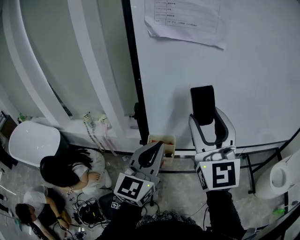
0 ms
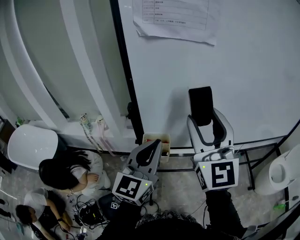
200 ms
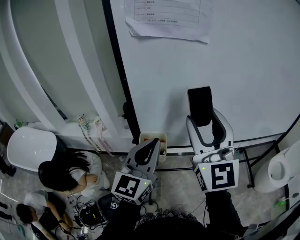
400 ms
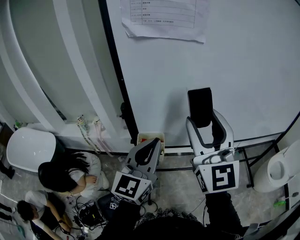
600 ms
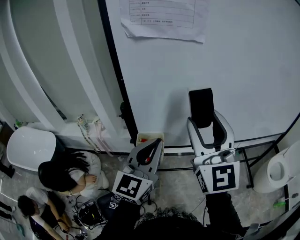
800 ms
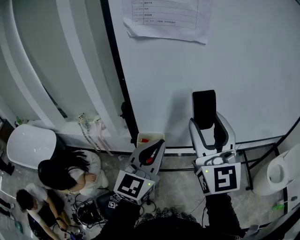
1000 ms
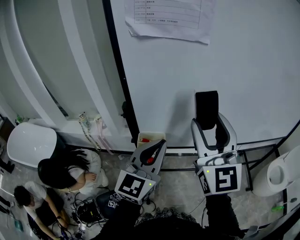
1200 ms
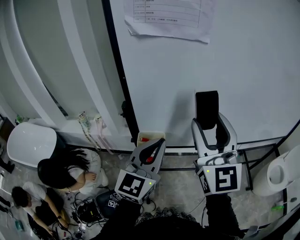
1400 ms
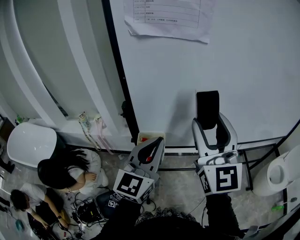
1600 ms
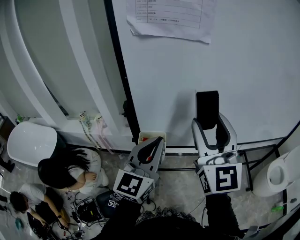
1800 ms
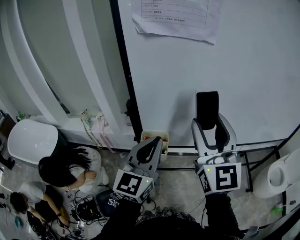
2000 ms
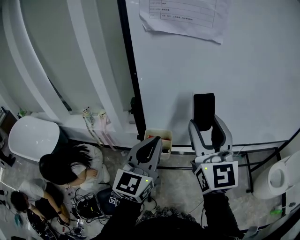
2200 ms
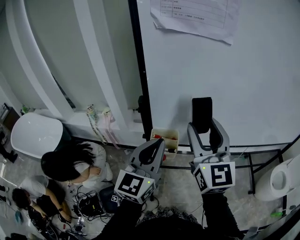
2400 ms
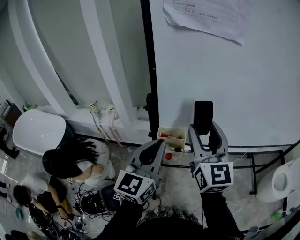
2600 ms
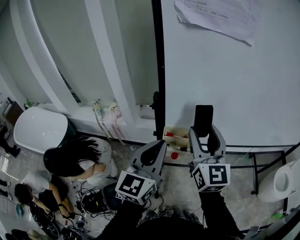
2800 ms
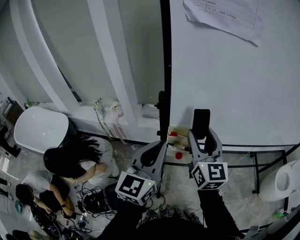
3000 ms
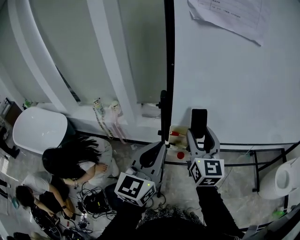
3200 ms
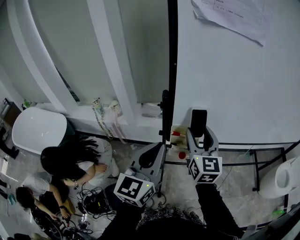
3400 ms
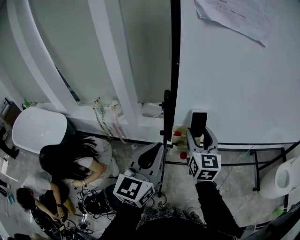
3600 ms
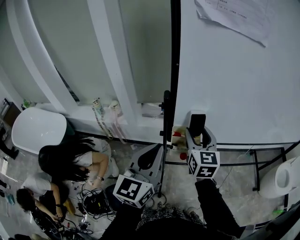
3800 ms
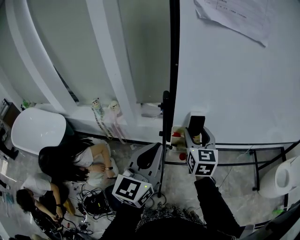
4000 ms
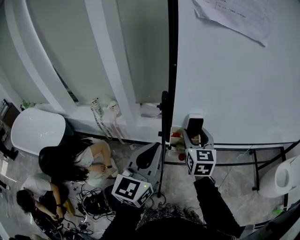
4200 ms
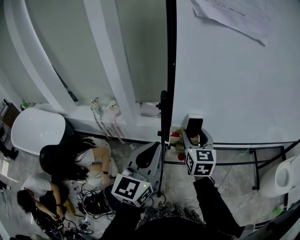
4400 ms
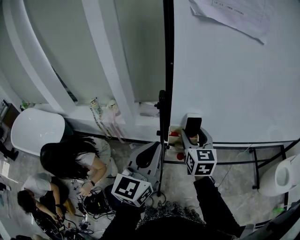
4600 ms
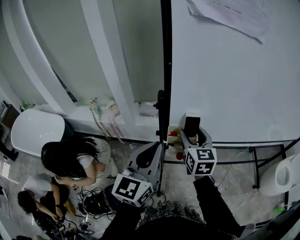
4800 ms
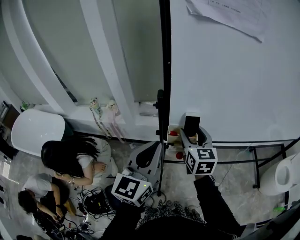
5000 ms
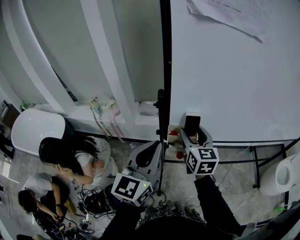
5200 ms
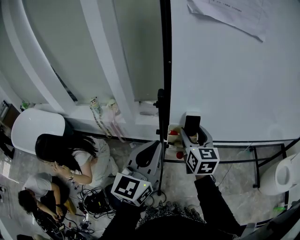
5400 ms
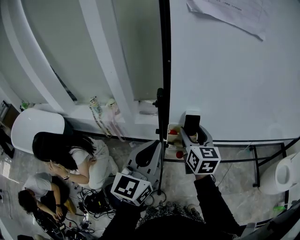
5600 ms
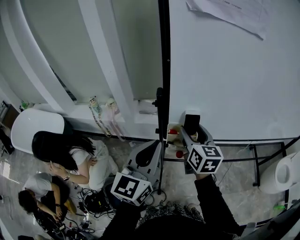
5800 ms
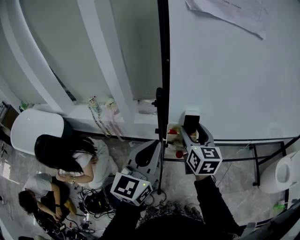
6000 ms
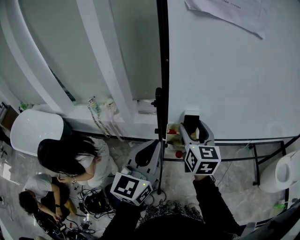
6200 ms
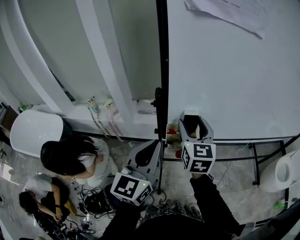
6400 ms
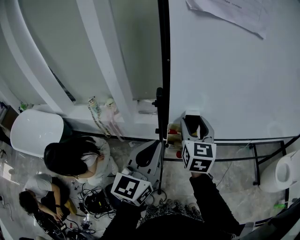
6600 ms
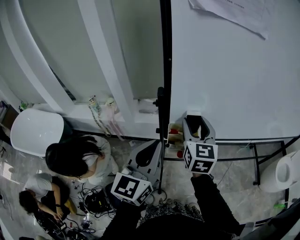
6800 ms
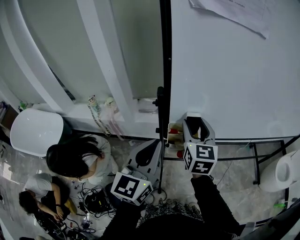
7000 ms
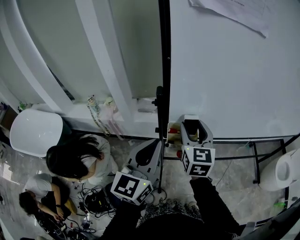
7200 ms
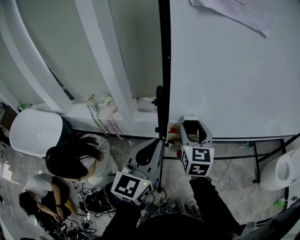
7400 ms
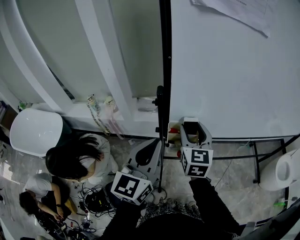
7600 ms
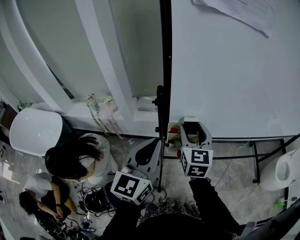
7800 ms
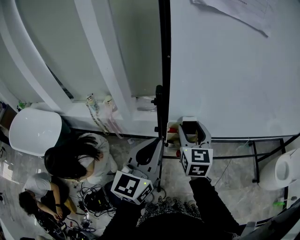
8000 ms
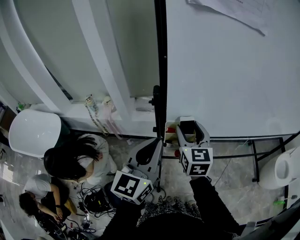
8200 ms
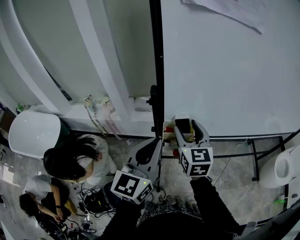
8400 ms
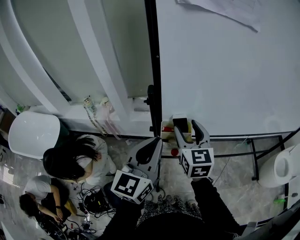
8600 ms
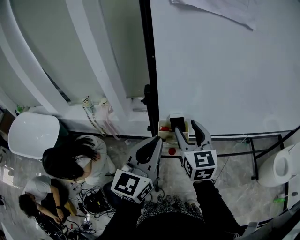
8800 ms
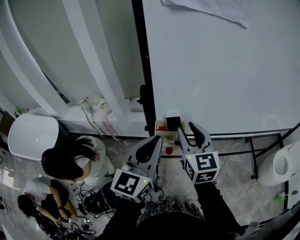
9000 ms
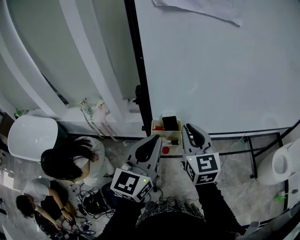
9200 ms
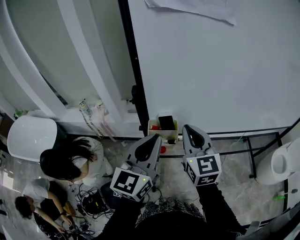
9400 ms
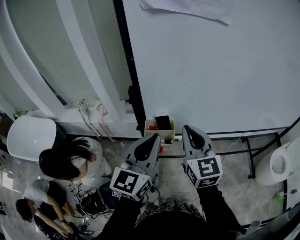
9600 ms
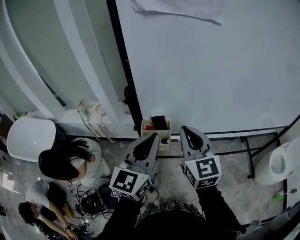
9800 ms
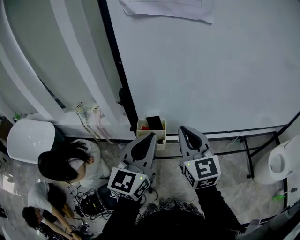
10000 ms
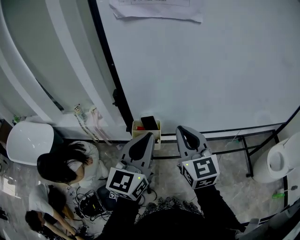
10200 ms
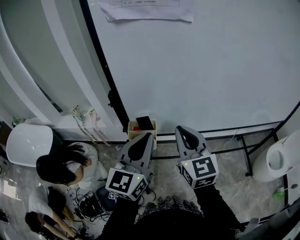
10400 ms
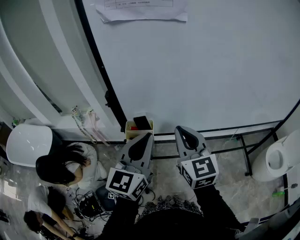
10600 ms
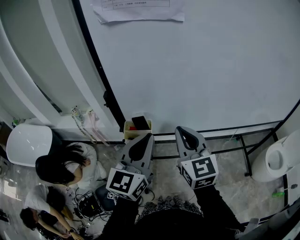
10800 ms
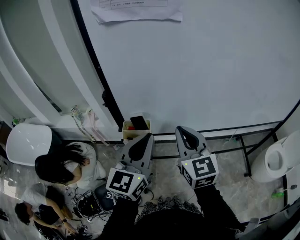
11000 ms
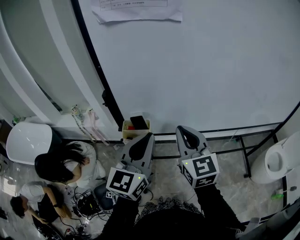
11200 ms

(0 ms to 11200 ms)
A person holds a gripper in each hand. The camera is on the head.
0 ms - 1600 ms: The right gripper shifts roughly 5 cm to the right.
1600 ms - 3200 ms: The left gripper moves to the left, roughly 10 cm. Meanwhile the right gripper is displaced downward and to the left by about 20 cm, and rotates some 20 degrees.
3200 ms - 4800 ms: The right gripper is displaced downward by about 5 cm.
4800 ms - 8000 ms: The grippers move only a little.
8000 ms - 9600 ms: The left gripper heads to the right, covering some 10 cm. The right gripper moves to the right, upward and backward, approximately 10 cm, and closes.
9600 ms - 11200 ms: The two grippers go approximately 10 cm to the right.

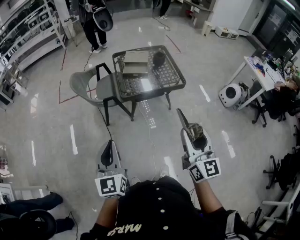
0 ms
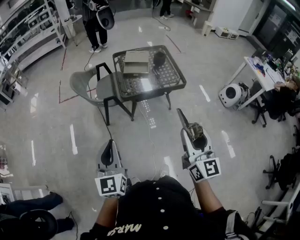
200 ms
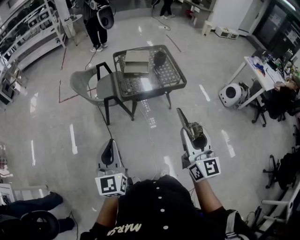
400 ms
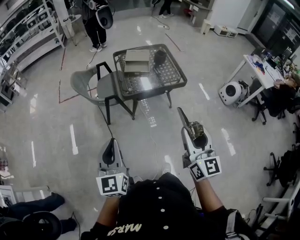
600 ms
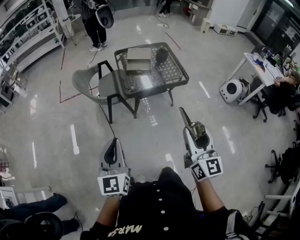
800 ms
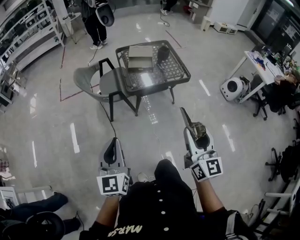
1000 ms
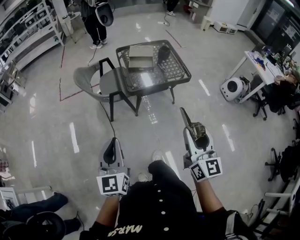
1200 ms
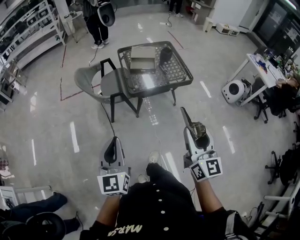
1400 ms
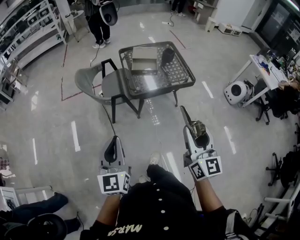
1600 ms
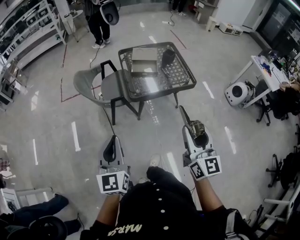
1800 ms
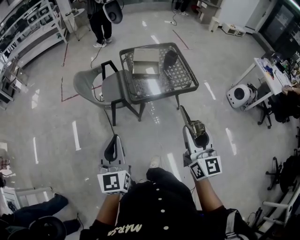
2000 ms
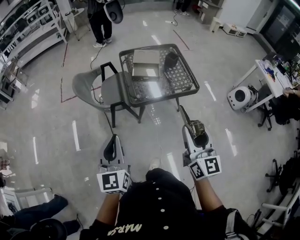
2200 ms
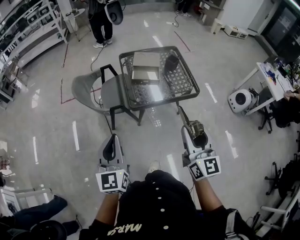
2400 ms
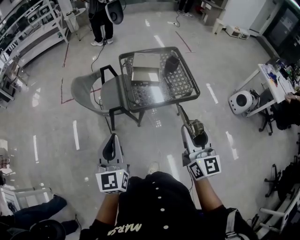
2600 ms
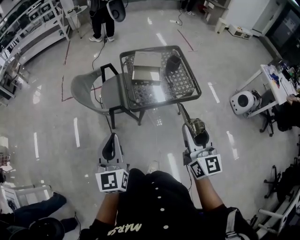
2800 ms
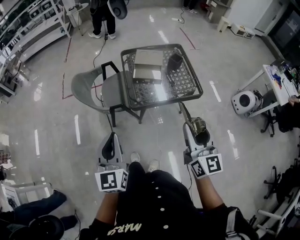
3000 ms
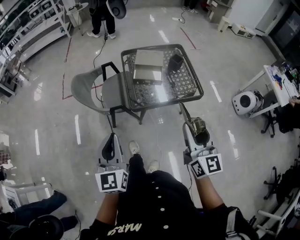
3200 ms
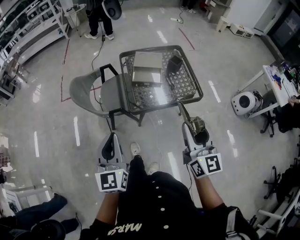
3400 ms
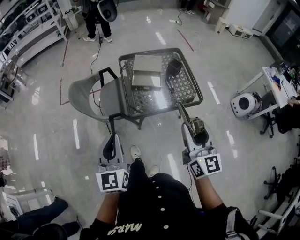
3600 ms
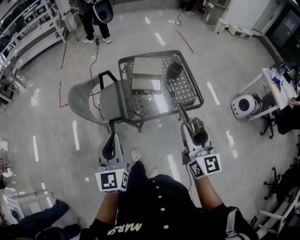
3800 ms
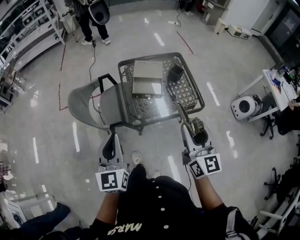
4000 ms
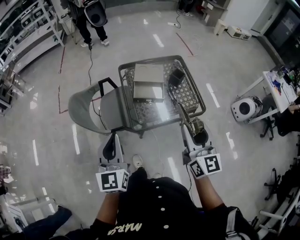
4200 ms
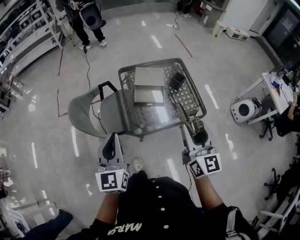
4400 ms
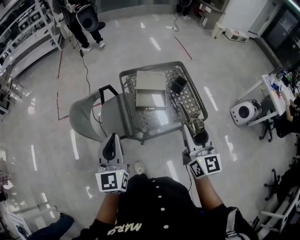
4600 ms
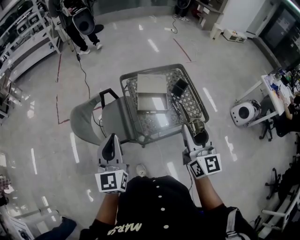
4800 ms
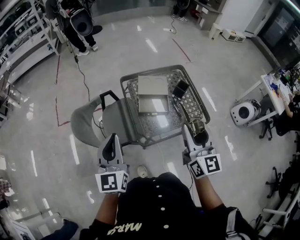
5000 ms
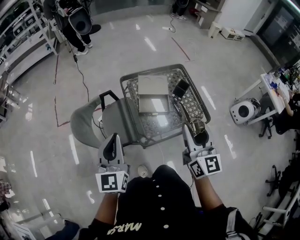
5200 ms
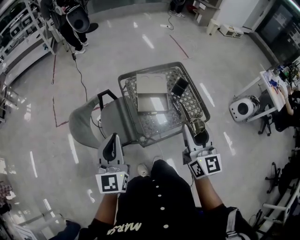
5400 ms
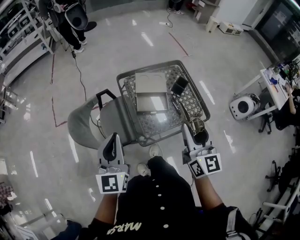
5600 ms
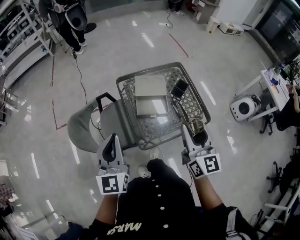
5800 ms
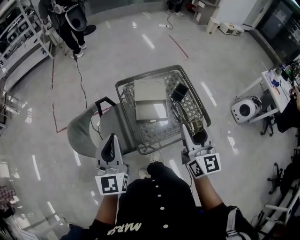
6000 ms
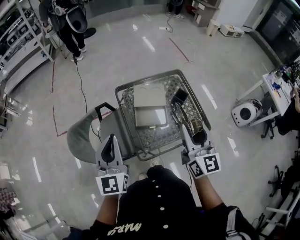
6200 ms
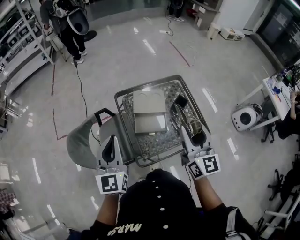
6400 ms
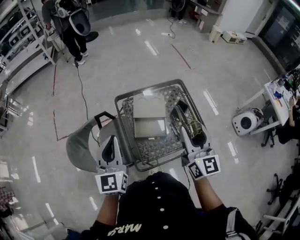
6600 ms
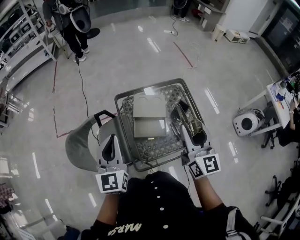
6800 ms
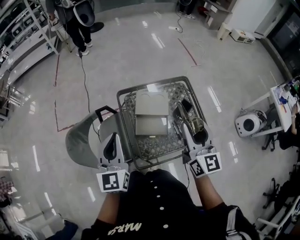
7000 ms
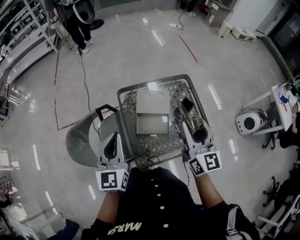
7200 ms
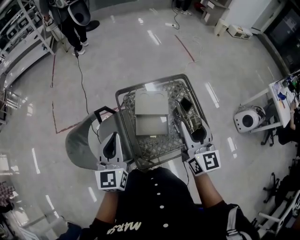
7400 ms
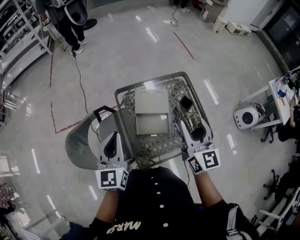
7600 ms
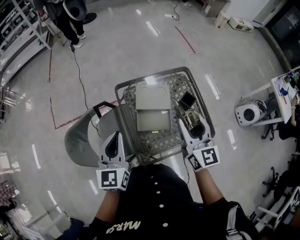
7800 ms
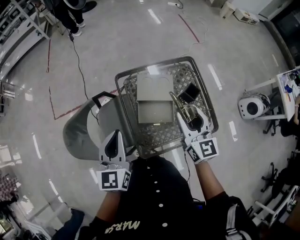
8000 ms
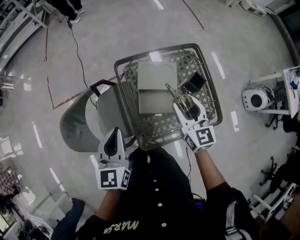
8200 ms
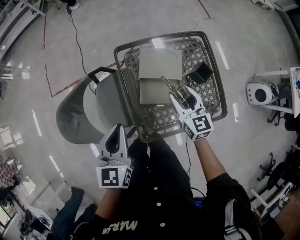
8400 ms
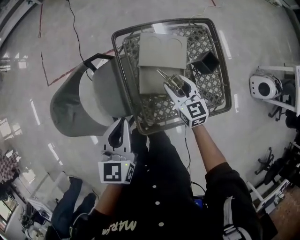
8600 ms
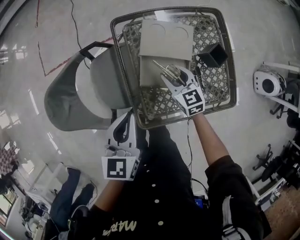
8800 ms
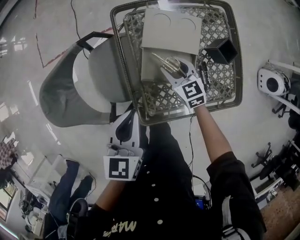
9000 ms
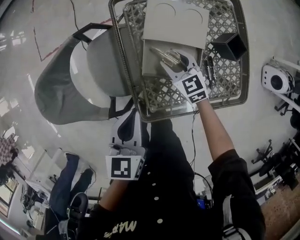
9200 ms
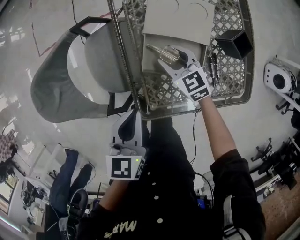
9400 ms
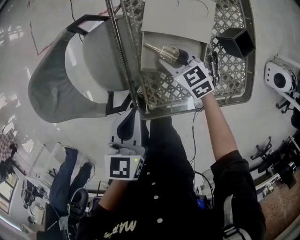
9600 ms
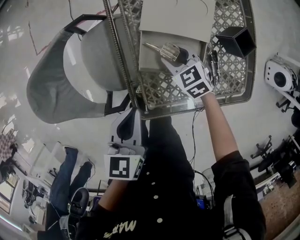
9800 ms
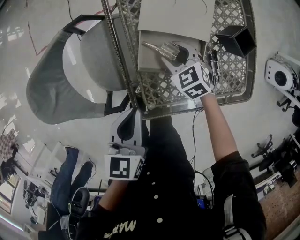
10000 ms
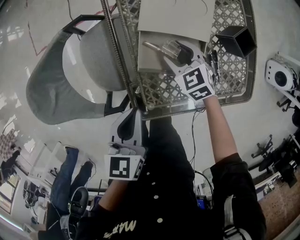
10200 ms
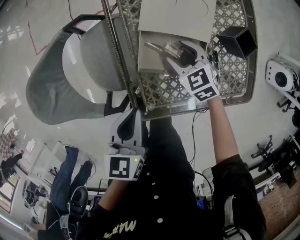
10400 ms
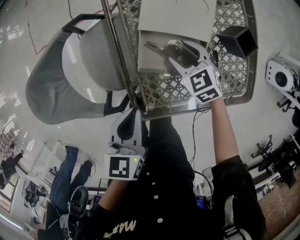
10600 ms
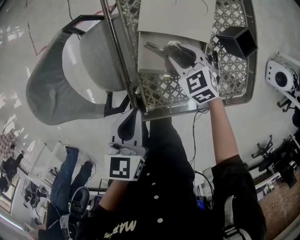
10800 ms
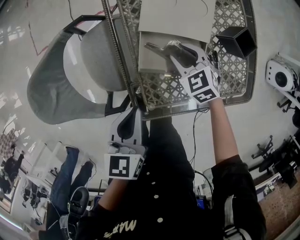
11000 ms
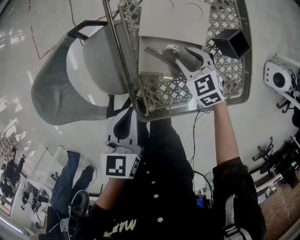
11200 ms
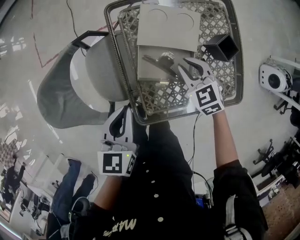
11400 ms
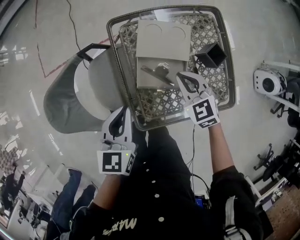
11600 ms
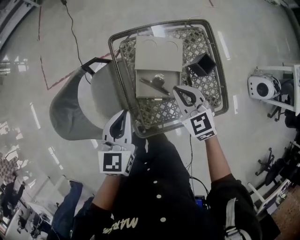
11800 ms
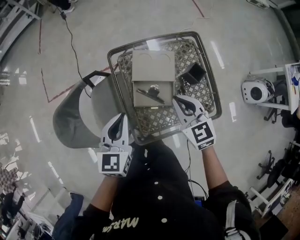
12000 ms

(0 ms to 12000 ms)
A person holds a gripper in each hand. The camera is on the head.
0 ms - 1600 ms: Both grippers travel together to the left, approximately 5 cm.
1600 ms - 3000 ms: The grippers both shift forward by approximately 15 cm.
3000 ms - 4400 ms: Both grippers travel together forward, roughly 20 cm.
4400 ms - 6000 ms: The two grippers go about 15 cm forward.
6000 ms - 7600 ms: Both grippers travel together forward, some 15 cm.
7600 ms - 9000 ms: The left gripper moves downward, approximately 20 cm, and rotates approximately 30 degrees. Meanwhile the right gripper travels downward by some 40 cm, and points its fingers about 40 degrees further downward.
9000 ms - 10400 ms: Both grippers travel together downward, roughly 5 cm.
10400 ms - 12000 ms: The left gripper goes about 20 cm upward, and rotates roughly 20 degrees. The right gripper travels upward by roughly 30 cm, turns by about 20 degrees, and closes its fingers.

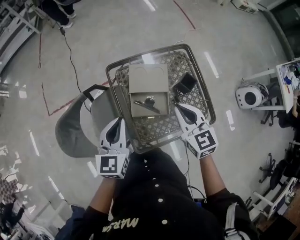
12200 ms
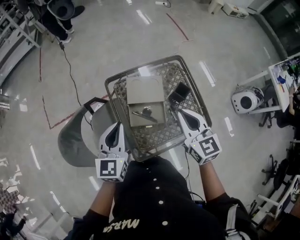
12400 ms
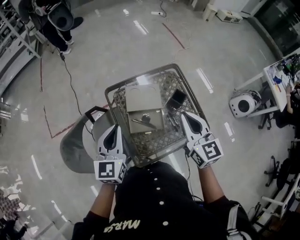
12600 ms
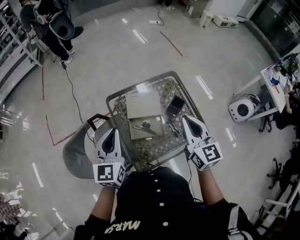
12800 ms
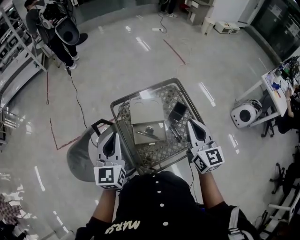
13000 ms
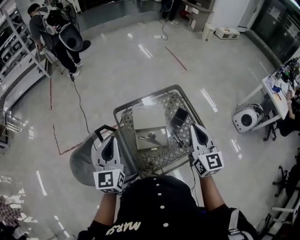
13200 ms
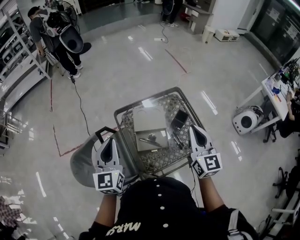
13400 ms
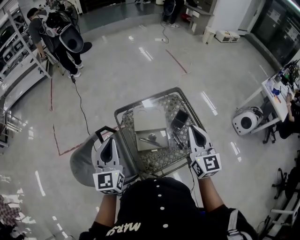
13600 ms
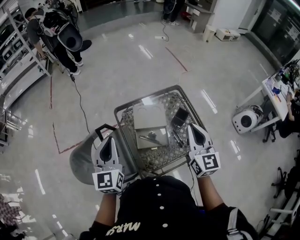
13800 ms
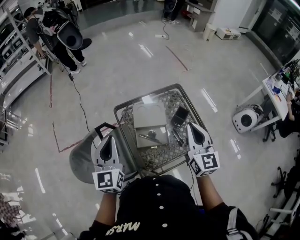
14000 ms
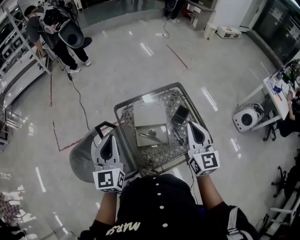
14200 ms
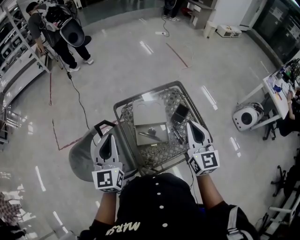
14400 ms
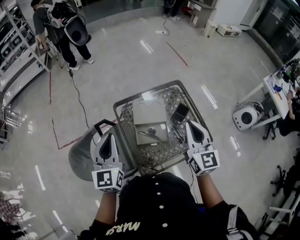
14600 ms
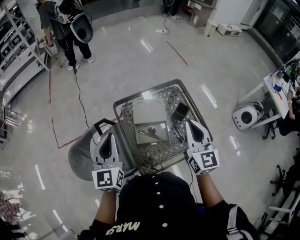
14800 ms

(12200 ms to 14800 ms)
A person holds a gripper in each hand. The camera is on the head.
12200 ms - 13400 ms: The right gripper shifts about 15 cm upward and to the right, and turns by roughly 30 degrees. The left gripper goes approximately 10 cm upward.
13400 ms - 14800 ms: The grippers make only small movements.
